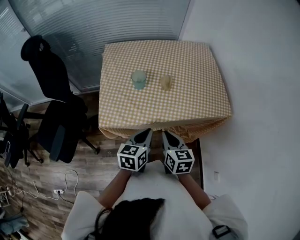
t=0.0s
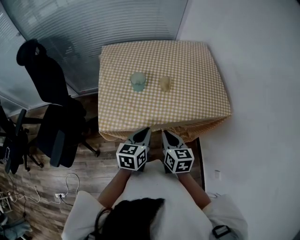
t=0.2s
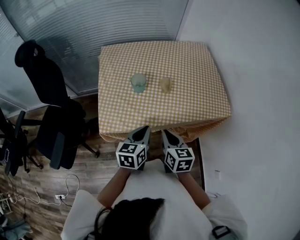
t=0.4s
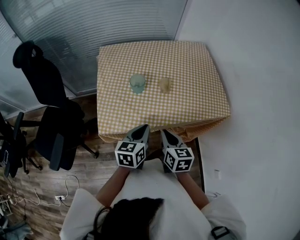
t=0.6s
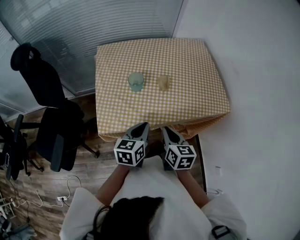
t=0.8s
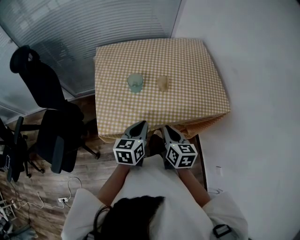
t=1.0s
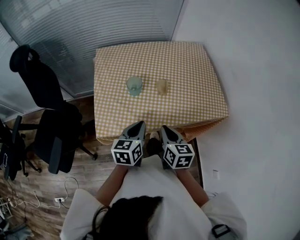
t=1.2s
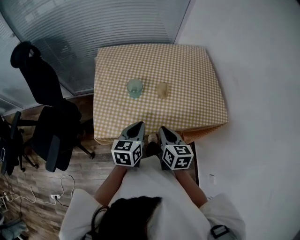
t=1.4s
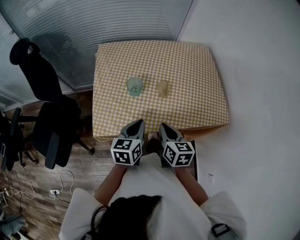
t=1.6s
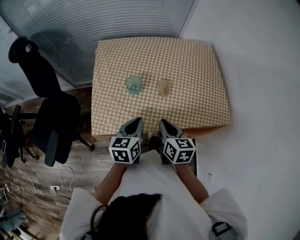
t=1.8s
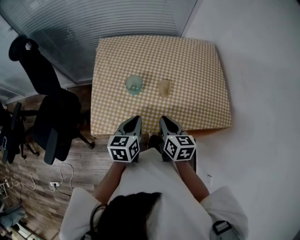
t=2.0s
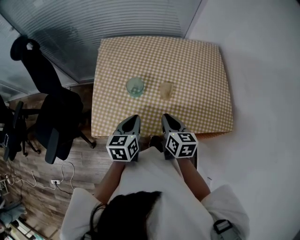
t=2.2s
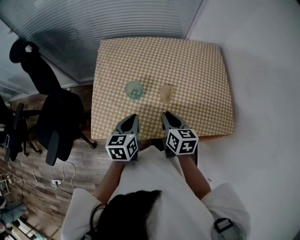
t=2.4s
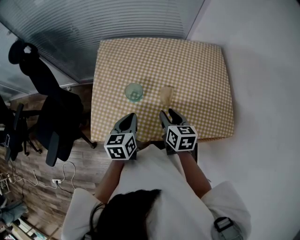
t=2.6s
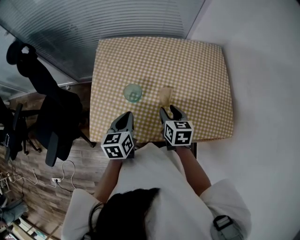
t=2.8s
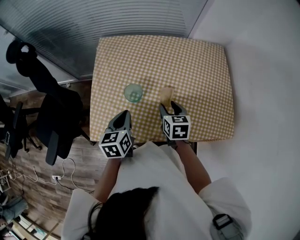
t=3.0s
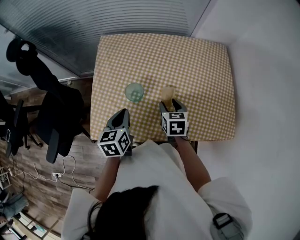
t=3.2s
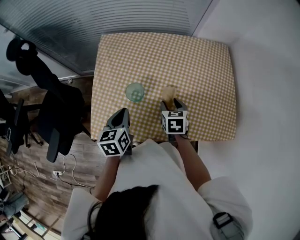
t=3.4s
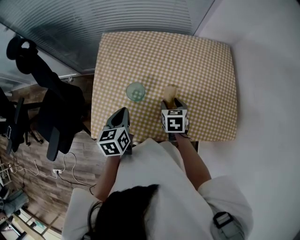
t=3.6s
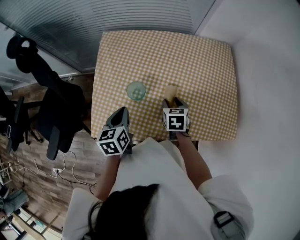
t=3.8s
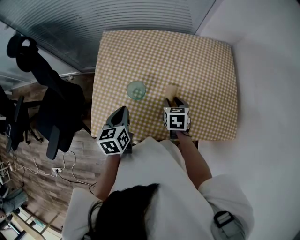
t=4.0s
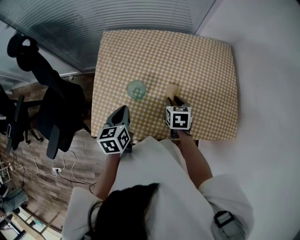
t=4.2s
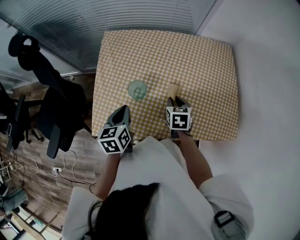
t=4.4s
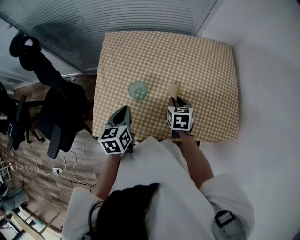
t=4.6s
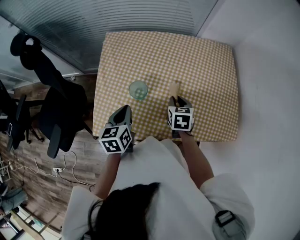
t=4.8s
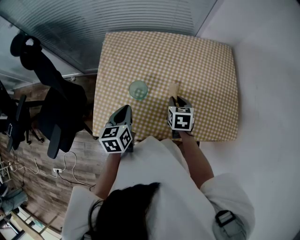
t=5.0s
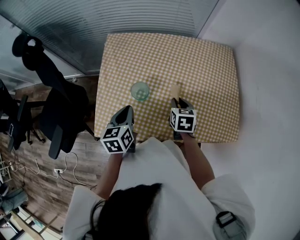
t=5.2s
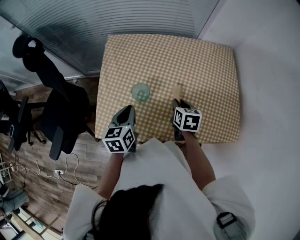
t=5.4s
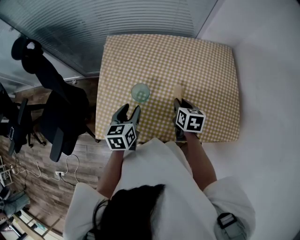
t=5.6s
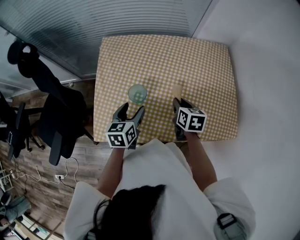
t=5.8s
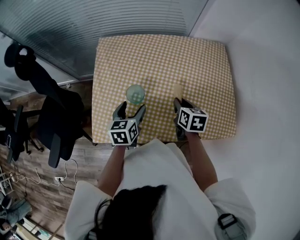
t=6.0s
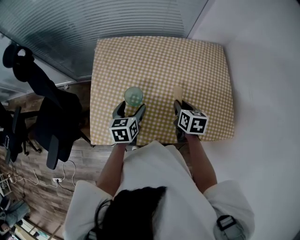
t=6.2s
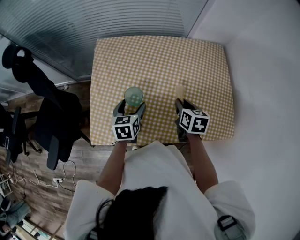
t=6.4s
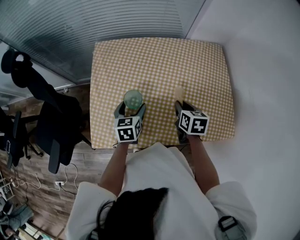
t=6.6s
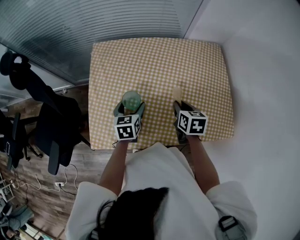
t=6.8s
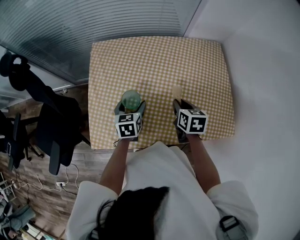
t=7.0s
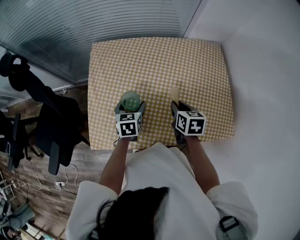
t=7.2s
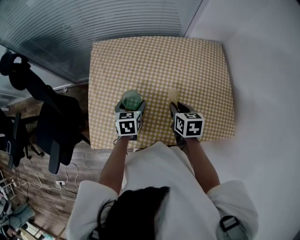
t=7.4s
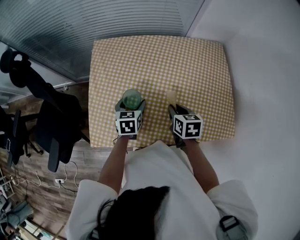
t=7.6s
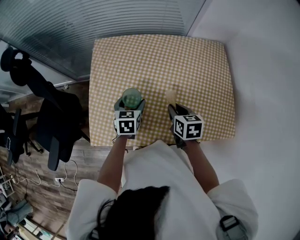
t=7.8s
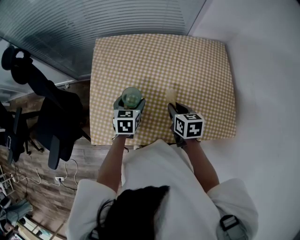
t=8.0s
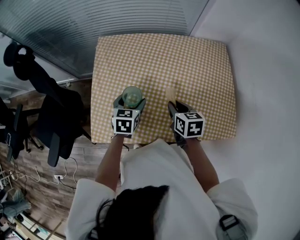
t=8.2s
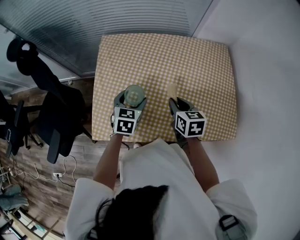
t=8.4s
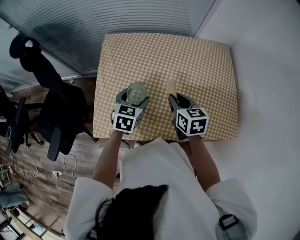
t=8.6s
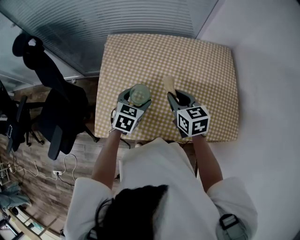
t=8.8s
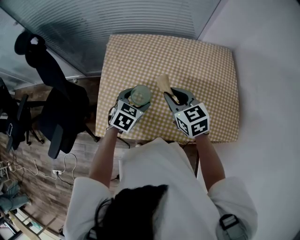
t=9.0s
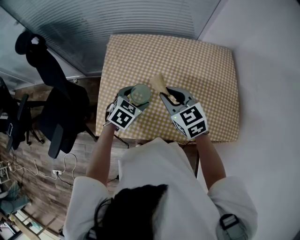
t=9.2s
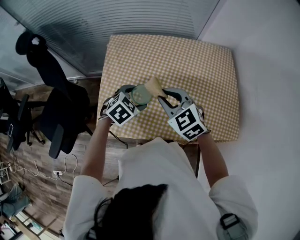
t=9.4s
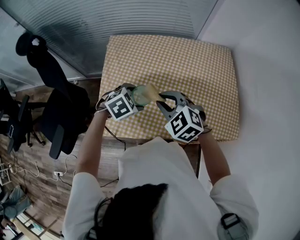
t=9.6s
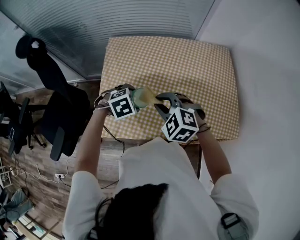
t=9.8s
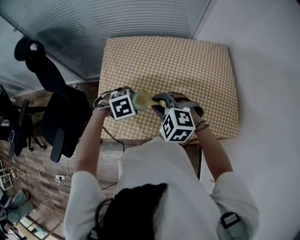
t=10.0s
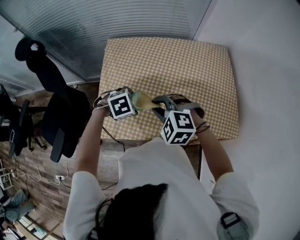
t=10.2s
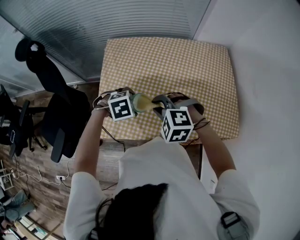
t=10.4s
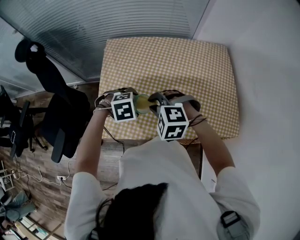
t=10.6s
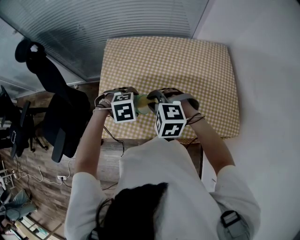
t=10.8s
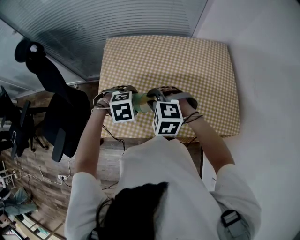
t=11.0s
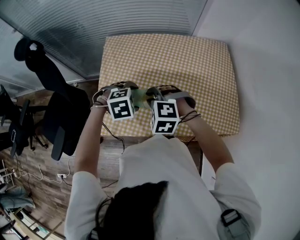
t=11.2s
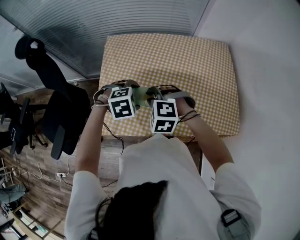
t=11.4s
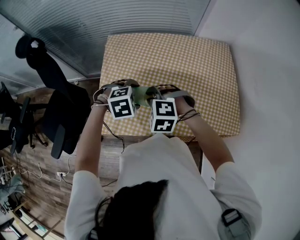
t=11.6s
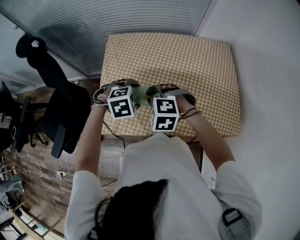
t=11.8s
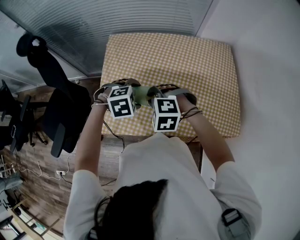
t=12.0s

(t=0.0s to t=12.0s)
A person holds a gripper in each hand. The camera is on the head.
t=0.0s - t=1.6s: The grippers both shift forward by about 10 cm.
t=1.6s - t=3.0s: The left gripper travels forward and to the left by some 10 cm. Meanwhile the right gripper goes approximately 15 cm forward, and opens.
t=3.0s - t=4.4s: There are only small adjustments of the grippers.
t=4.4s - t=6.0s: The left gripper shifts by some 5 cm, and opens its fingers.
t=6.0s - t=7.6s: The left gripper moves roughly 5 cm.
t=7.6s - t=9.0s: The left gripper heads upward, covering about 5 cm, and changes its angle by roughly 30 degrees; the right gripper travels upward and to the left by about 15 cm, and rotates about 40 degrees.
t=9.0s - t=10.4s: The right gripper goes approximately 5 cm backward, and twists approximately 50 degrees counterclockwise, seen from behind. Meanwhile the left gripper rotates about 50 degrees.
t=10.4s - t=12.0s: The grippers make only small movements.

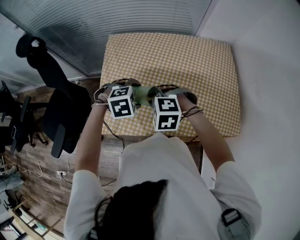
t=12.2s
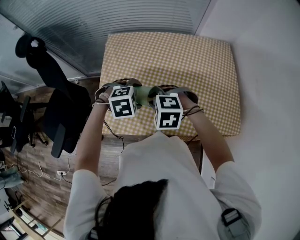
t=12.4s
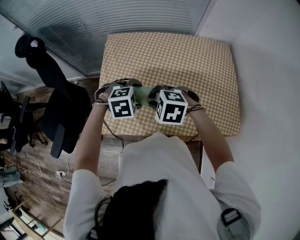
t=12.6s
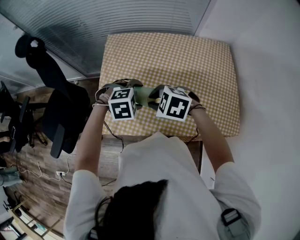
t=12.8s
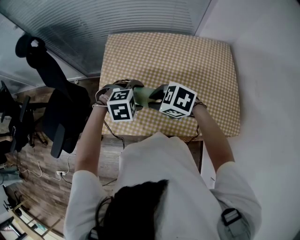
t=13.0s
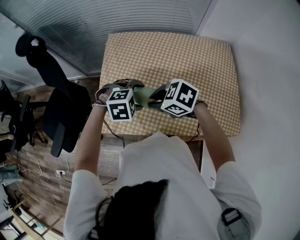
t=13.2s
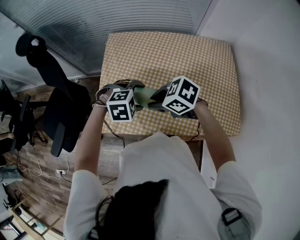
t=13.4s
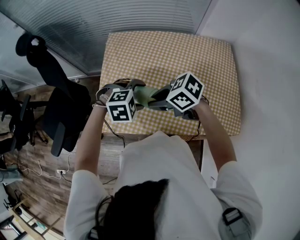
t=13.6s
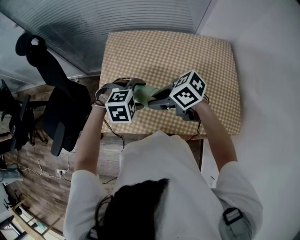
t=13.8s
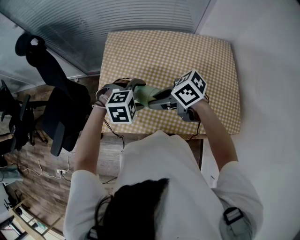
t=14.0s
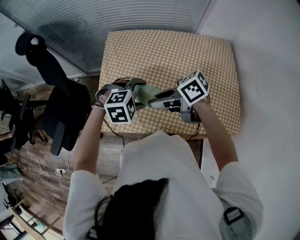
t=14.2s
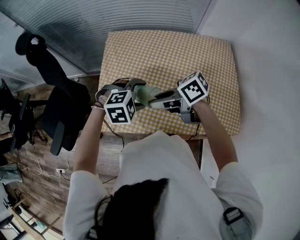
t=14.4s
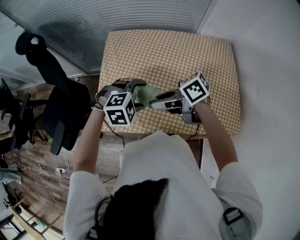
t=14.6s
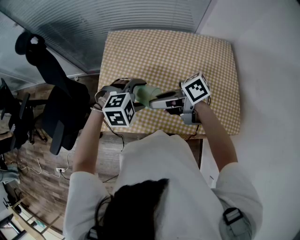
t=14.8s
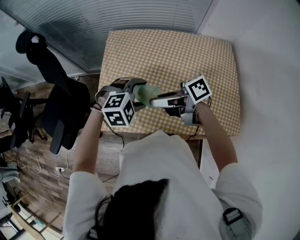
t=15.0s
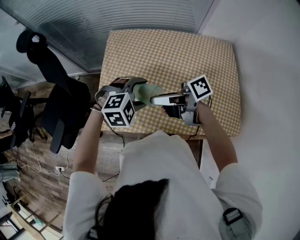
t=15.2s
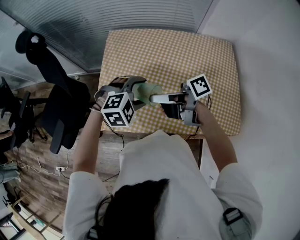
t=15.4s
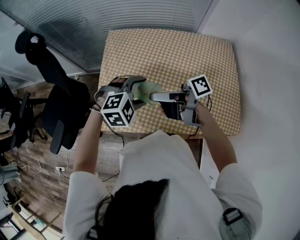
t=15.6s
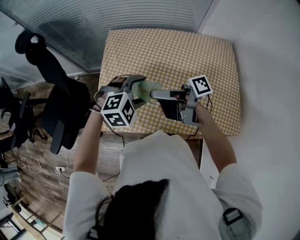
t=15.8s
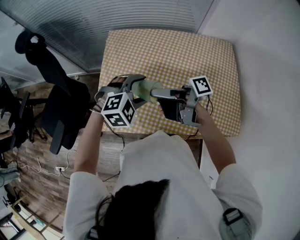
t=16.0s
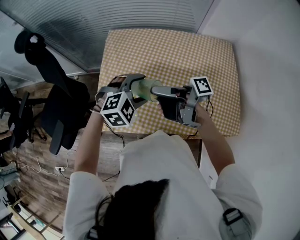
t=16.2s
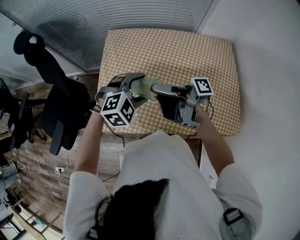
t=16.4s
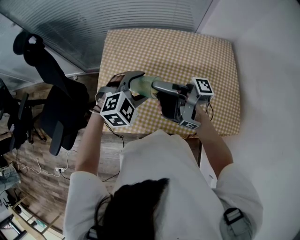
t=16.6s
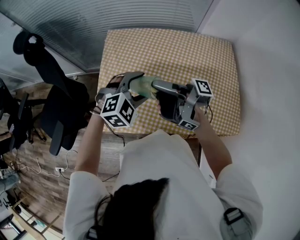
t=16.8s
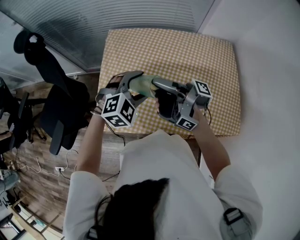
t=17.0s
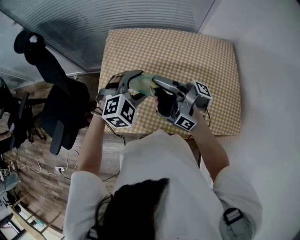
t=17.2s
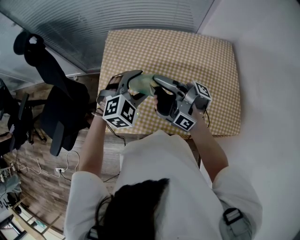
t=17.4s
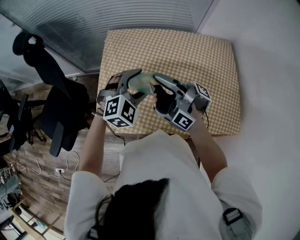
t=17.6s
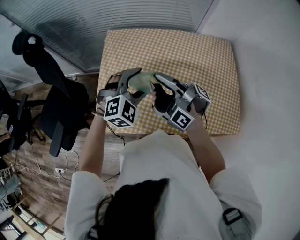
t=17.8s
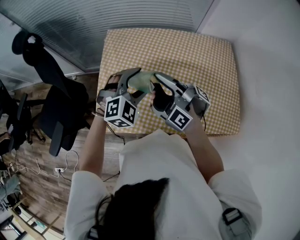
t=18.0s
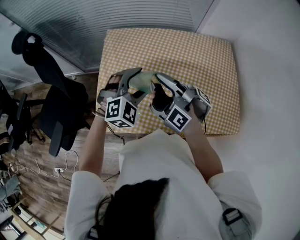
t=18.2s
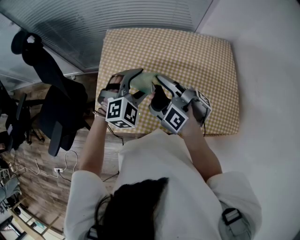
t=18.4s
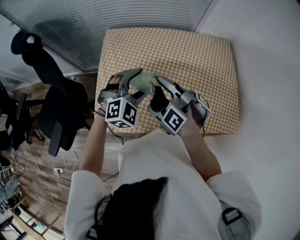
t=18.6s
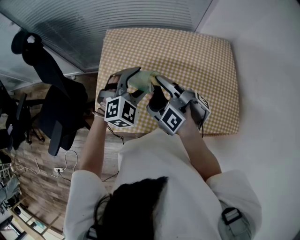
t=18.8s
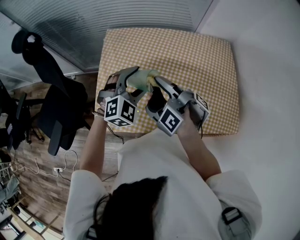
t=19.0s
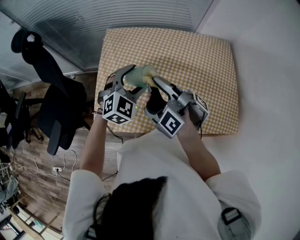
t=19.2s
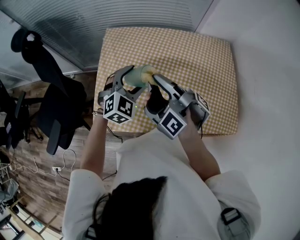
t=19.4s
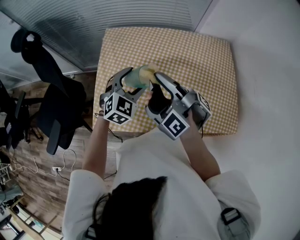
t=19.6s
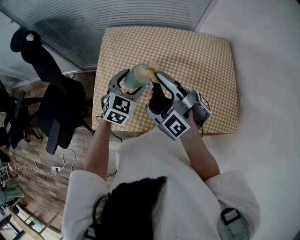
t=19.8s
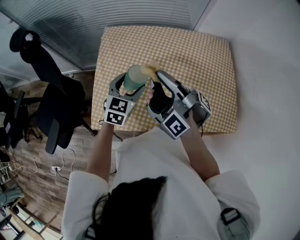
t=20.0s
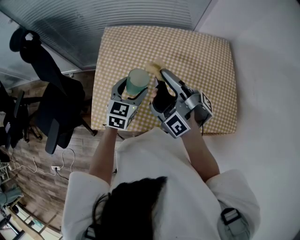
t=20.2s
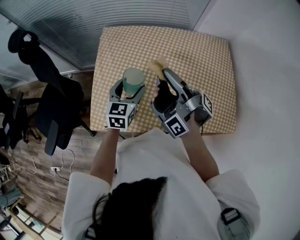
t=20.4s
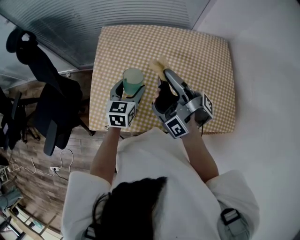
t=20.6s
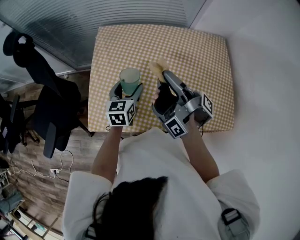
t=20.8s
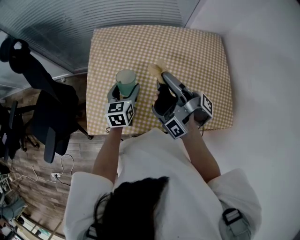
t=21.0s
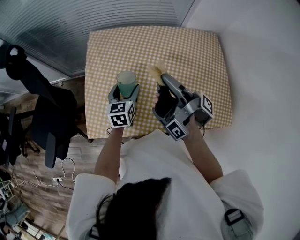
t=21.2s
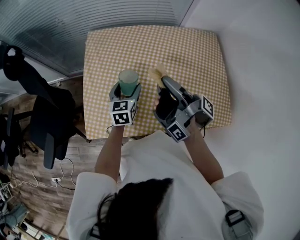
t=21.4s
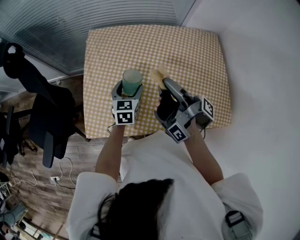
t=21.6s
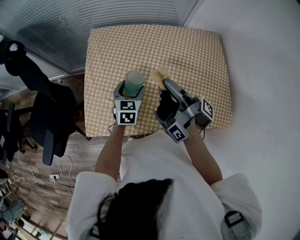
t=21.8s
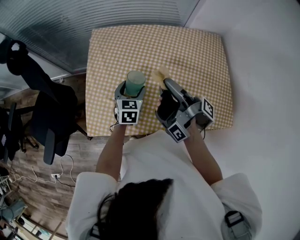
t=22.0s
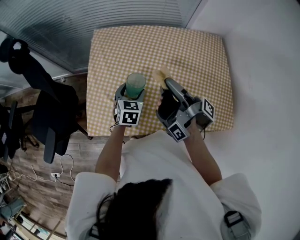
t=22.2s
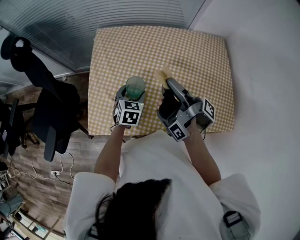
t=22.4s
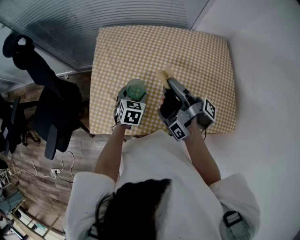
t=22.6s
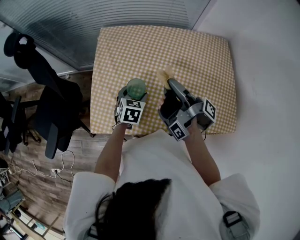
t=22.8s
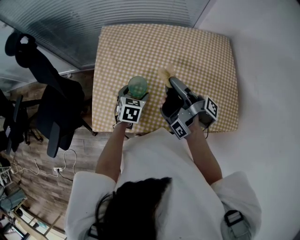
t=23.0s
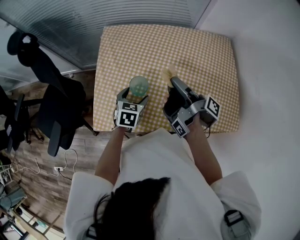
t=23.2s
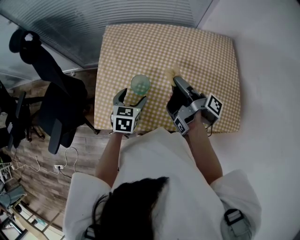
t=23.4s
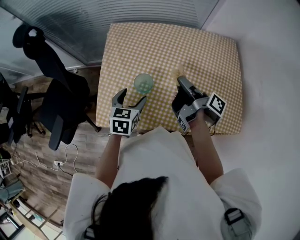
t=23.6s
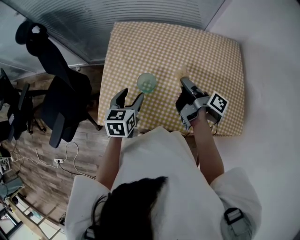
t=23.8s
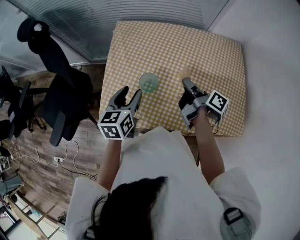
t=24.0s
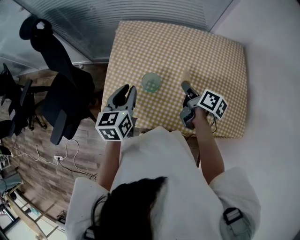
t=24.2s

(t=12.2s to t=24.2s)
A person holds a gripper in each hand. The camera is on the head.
t=12.2s - t=13.8s: The right gripper changes place by approximately 5 cm, and points its fingers about 30 degrees further upward.
t=13.8s - t=15.2s: The right gripper ends up approximately 5 cm from where it was, and points its fingers about 30 degrees further upward.
t=15.2s - t=16.6s: The right gripper moves about 5 cm, and swivels about 40 degrees.
t=16.6s - t=18.2s: The right gripper rotates roughly 40 degrees.
t=18.2s - t=19.8s: The left gripper turns by roughly 30 degrees.
t=19.8s - t=21.2s: The left gripper is displaced downward by approximately 10 cm, and swivels roughly 40 degrees. Meanwhile the right gripper ends up approximately 5 cm from where it was.
t=21.2s - t=22.6s: The left gripper rotates some 20 degrees.
t=22.6s - t=24.2s: The right gripper goes approximately 10 cm downward, and twists about 50 degrees counterclockwise, seen from behind; the left gripper moves upward and to the left, roughly 15 cm, turns by about 30 degrees, and closes.
